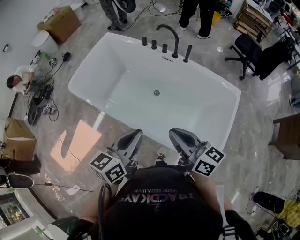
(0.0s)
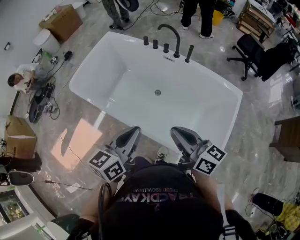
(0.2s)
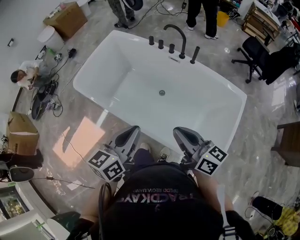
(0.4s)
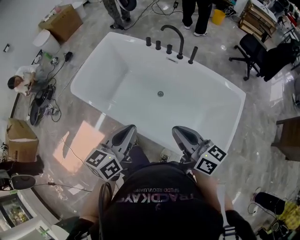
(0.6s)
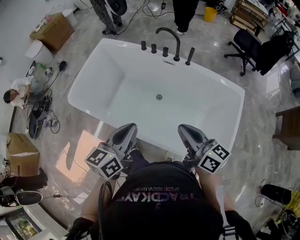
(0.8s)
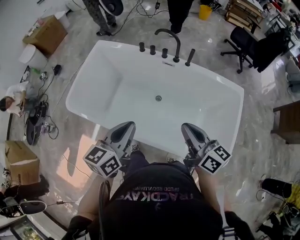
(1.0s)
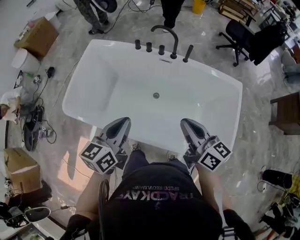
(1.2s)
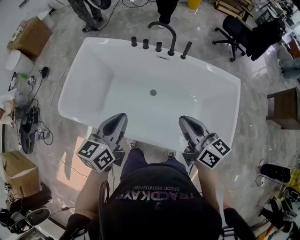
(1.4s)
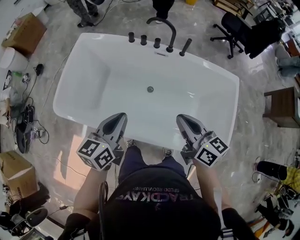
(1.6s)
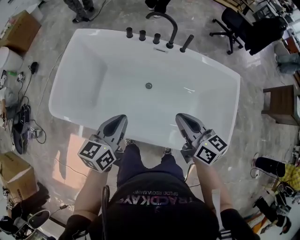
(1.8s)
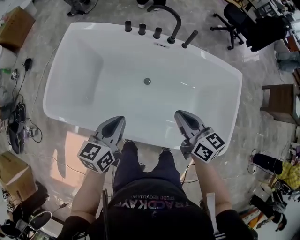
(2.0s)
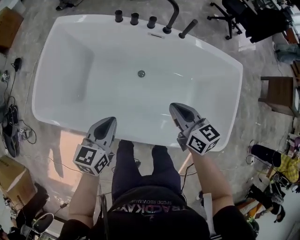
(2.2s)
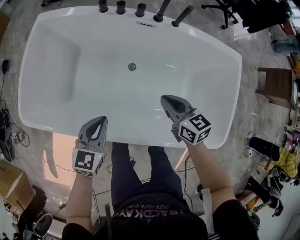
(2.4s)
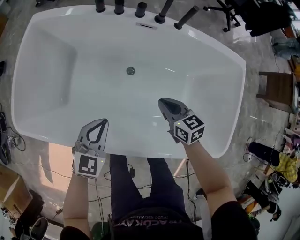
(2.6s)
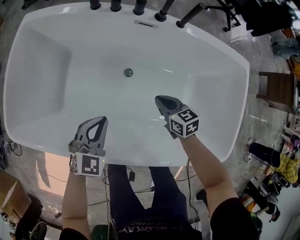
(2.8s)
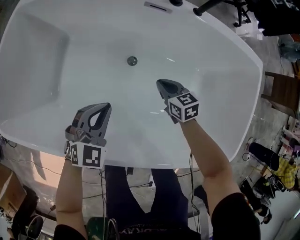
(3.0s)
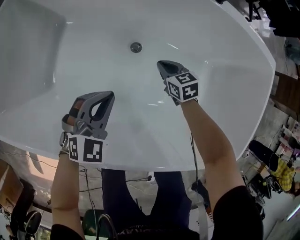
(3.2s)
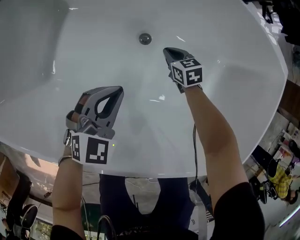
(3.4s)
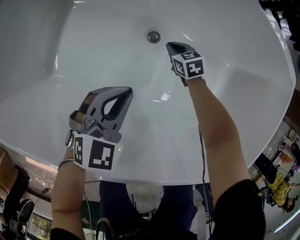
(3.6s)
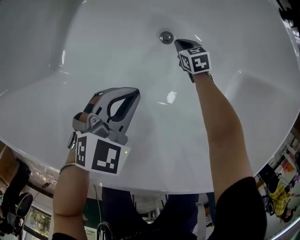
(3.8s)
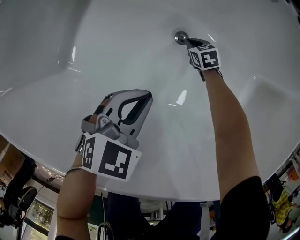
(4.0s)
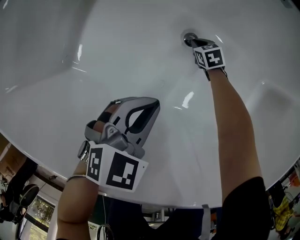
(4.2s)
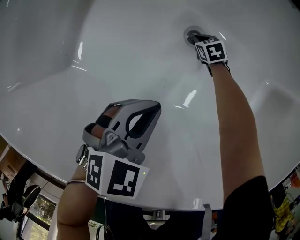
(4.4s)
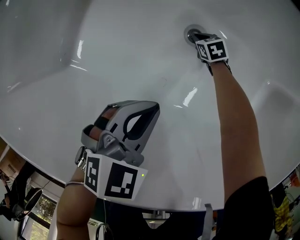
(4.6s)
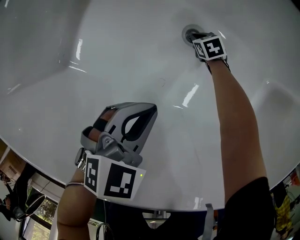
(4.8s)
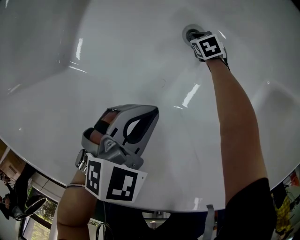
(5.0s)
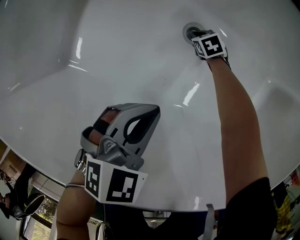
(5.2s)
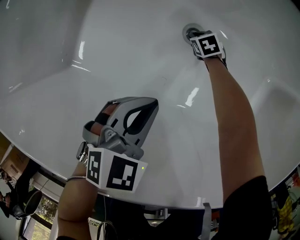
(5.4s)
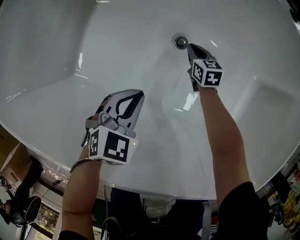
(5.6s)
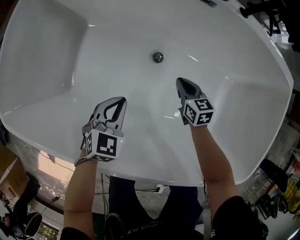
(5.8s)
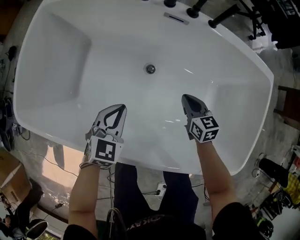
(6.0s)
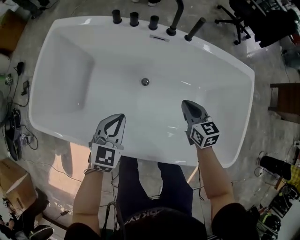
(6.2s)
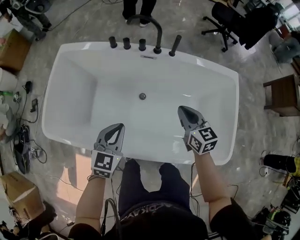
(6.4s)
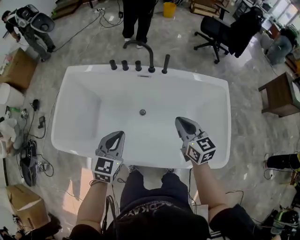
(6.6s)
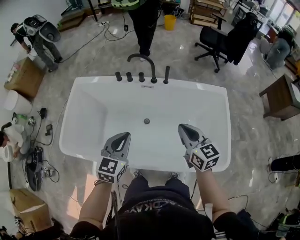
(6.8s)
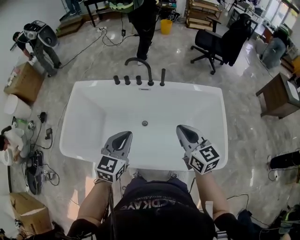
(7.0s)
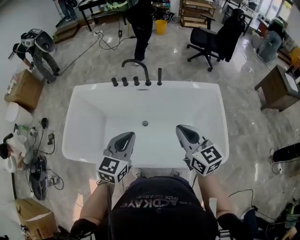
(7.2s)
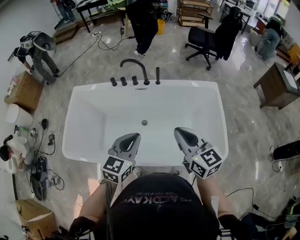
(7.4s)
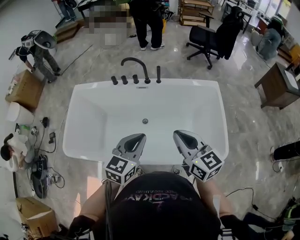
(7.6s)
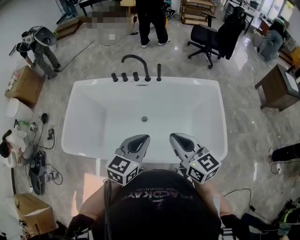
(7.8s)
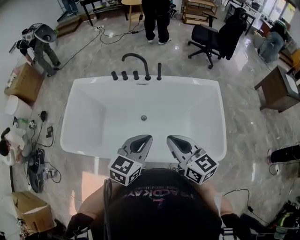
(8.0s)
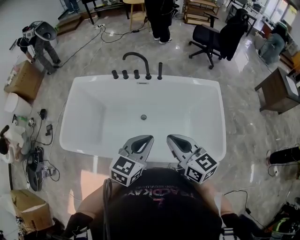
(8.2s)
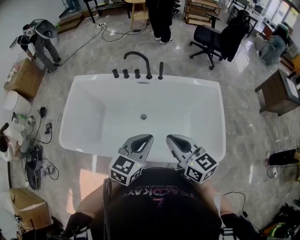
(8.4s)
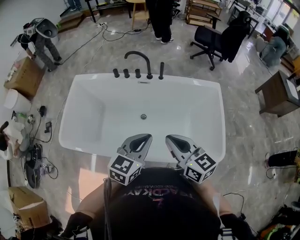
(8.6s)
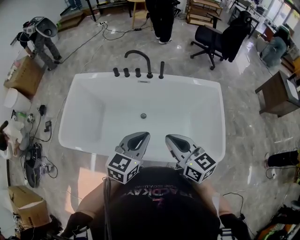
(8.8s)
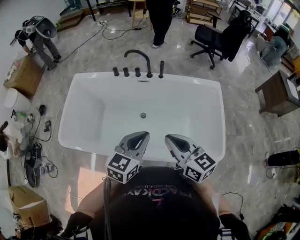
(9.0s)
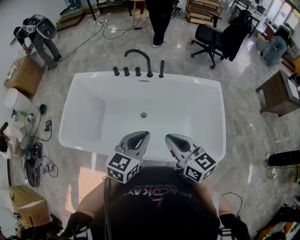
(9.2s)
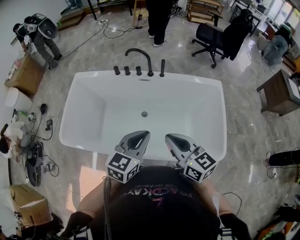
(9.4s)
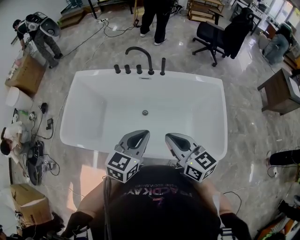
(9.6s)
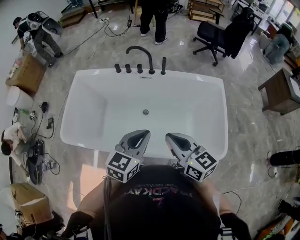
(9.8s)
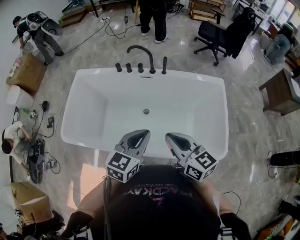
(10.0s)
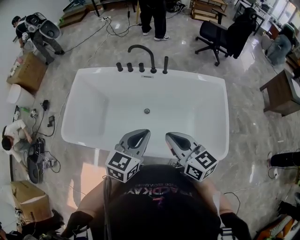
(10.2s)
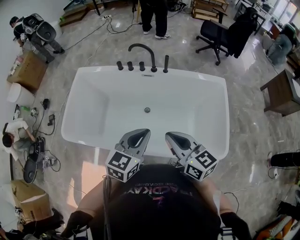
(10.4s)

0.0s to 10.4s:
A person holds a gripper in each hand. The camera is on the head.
0.0s to 1.4s: The left gripper heads forward and to the left, covering about 20 cm; the right gripper heads forward, covering roughly 10 cm, and turns by about 20 degrees.
1.4s to 3.0s: The two grippers go about 35 cm downward. The left gripper twists roughly 50 degrees clockwise, seen from behind, while the right gripper angles its fingers downward, by some 40 degrees.
3.0s to 4.4s: The right gripper moves downward and forward, roughly 35 cm, and rotates some 30 degrees. Meanwhile the left gripper goes some 10 cm downward, and turns by about 20 degrees.
4.4s to 6.0s: The right gripper moves upward and backward, approximately 35 cm, and rotates about 30 degrees; the left gripper moves upward, approximately 10 cm.
6.0s to 7.4s: The right gripper shifts about 40 cm upward, and changes its angle by about 30 degrees, while the left gripper is displaced upward and to the right by about 35 cm, and changes its angle by about 20 degrees.
7.4s to 9.0s: The right gripper shifts by roughly 5 cm.
9.0s to 10.4s: Both grippers stay put.

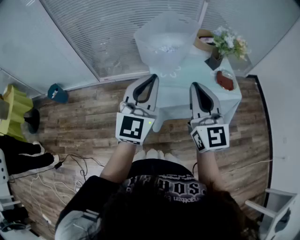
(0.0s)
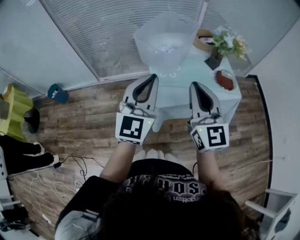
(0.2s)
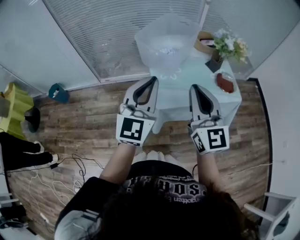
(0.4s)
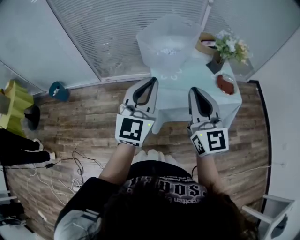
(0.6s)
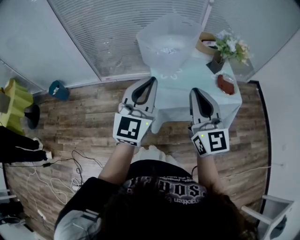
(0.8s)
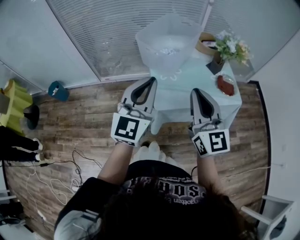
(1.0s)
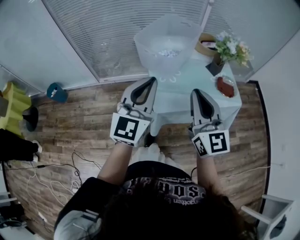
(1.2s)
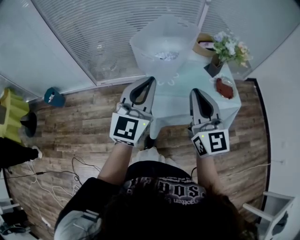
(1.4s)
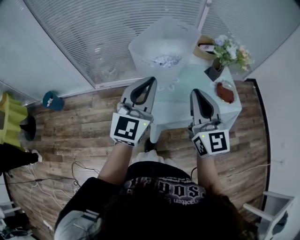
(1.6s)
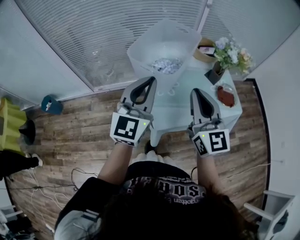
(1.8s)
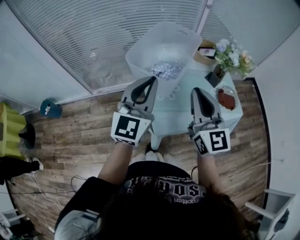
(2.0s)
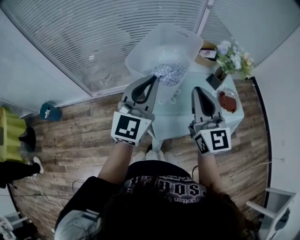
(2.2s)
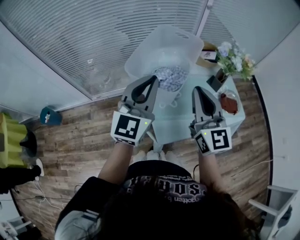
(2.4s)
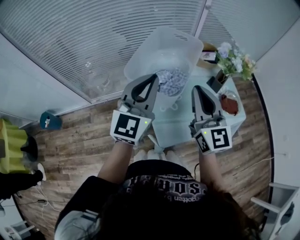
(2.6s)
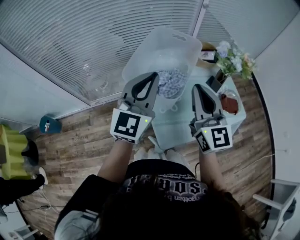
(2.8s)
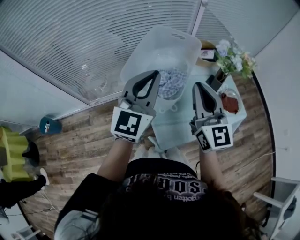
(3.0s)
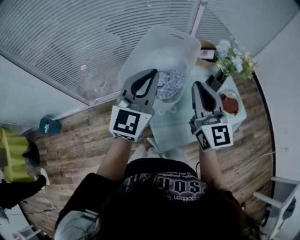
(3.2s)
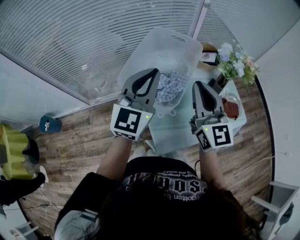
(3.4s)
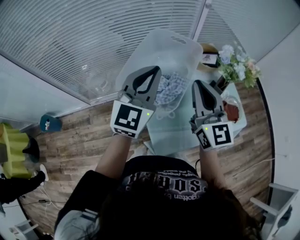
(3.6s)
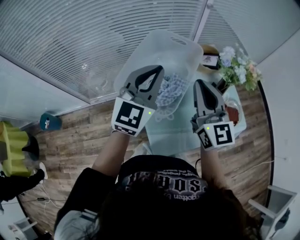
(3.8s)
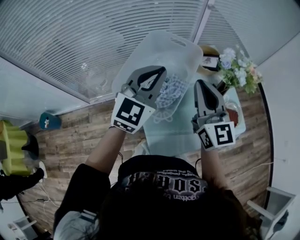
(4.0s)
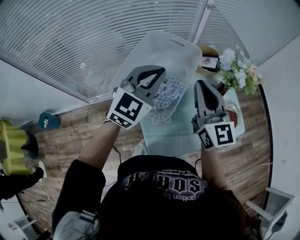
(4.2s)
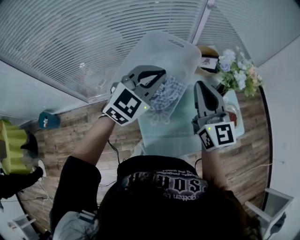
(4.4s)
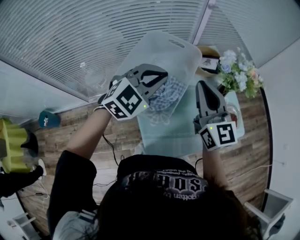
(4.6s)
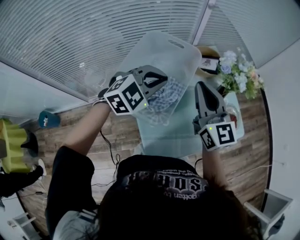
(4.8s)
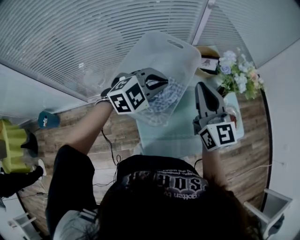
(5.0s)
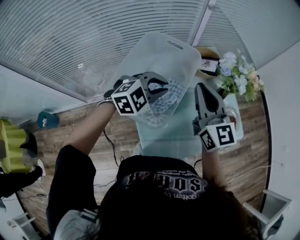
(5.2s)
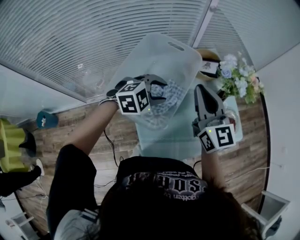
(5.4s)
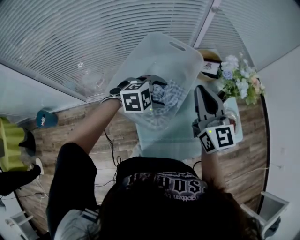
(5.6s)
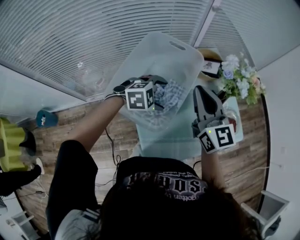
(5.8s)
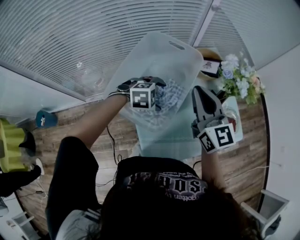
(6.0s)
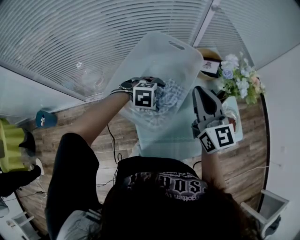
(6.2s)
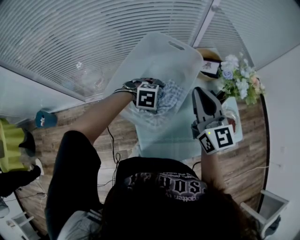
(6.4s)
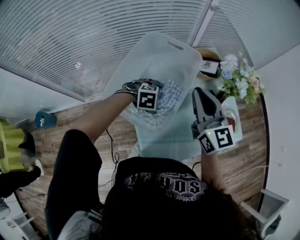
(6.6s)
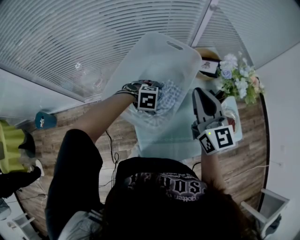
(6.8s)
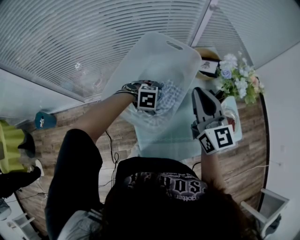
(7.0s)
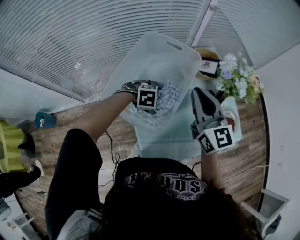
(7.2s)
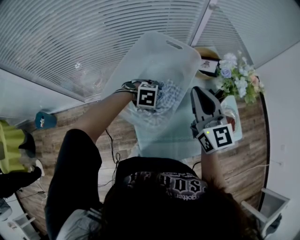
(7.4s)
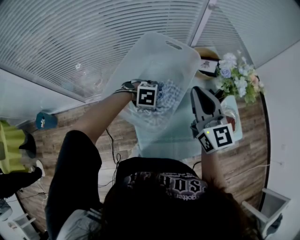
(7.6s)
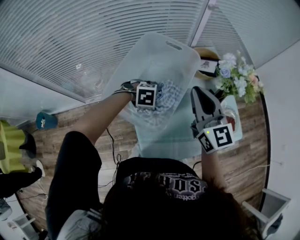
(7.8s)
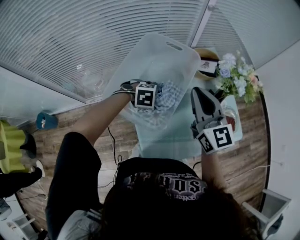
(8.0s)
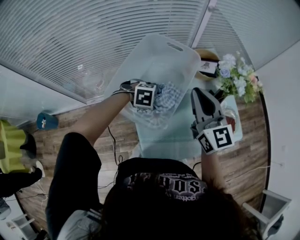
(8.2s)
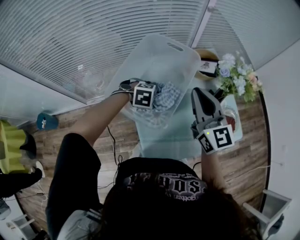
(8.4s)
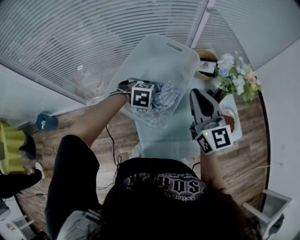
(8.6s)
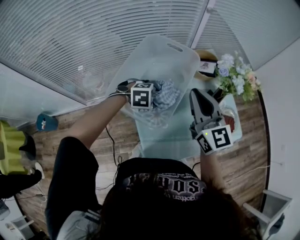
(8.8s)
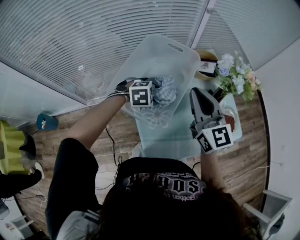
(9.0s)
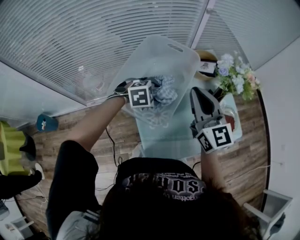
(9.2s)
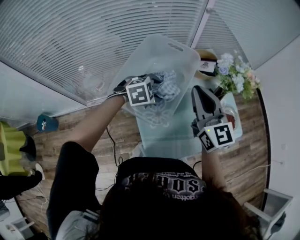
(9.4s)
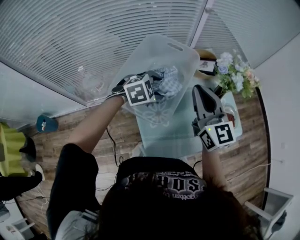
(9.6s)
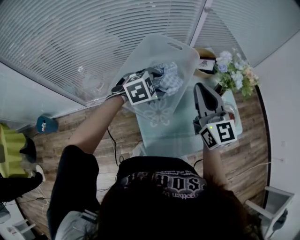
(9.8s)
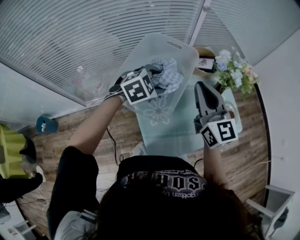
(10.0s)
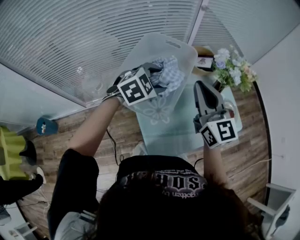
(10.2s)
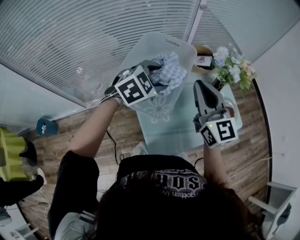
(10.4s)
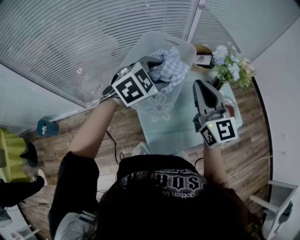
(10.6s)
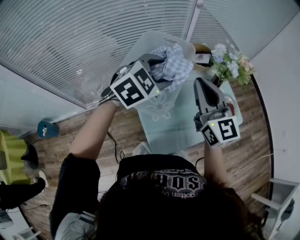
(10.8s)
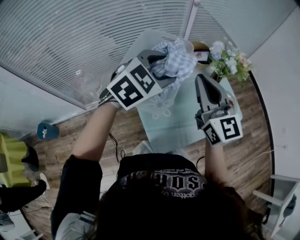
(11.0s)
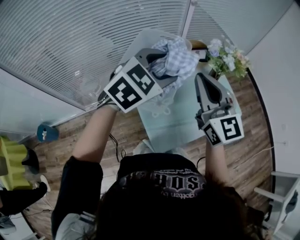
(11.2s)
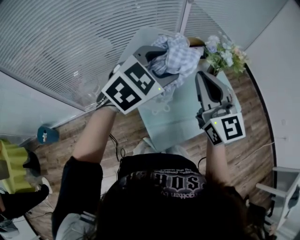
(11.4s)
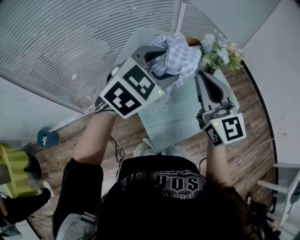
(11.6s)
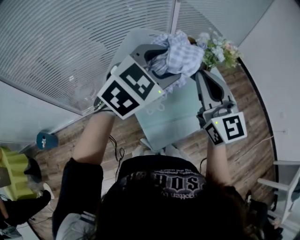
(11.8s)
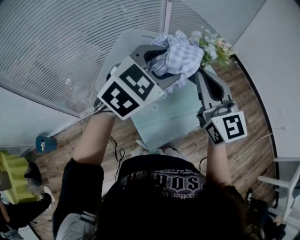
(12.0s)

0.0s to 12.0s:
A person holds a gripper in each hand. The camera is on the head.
0.0s to 1.6s: Both grippers travel together forward, some 10 cm.
1.6s to 3.0s: Both grippers travel together forward, roughly 15 cm.
3.0s to 4.4s: The right gripper heads forward, covering about 10 cm, while the left gripper is displaced forward and to the right by some 10 cm, and rotates approximately 30 degrees.
4.4s to 6.0s: The left gripper is displaced downward by some 25 cm, angles its fingers downward, by some 40 degrees, and opens up.
7.6s to 9.0s: The left gripper goes some 5 cm upward.
9.0s to 10.4s: The left gripper goes roughly 15 cm upward, and changes its angle by roughly 30 degrees.
10.4s to 12.0s: The left gripper travels upward, to the right and backward by approximately 20 cm; the right gripper shifts about 10 cm to the right, upward and backward.

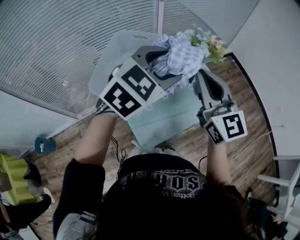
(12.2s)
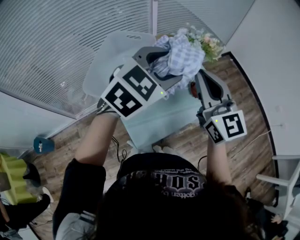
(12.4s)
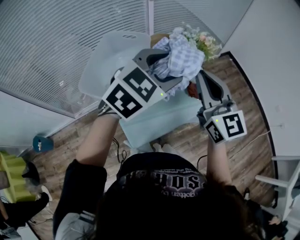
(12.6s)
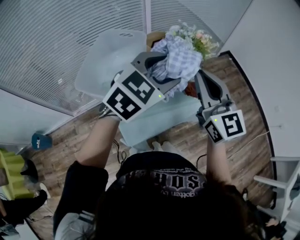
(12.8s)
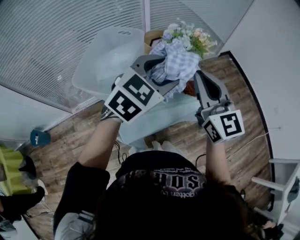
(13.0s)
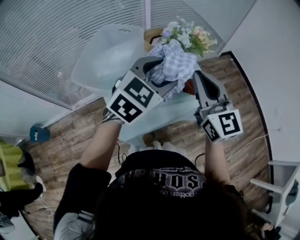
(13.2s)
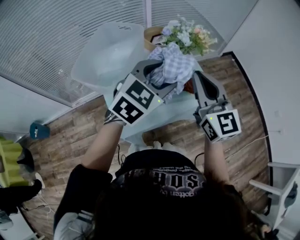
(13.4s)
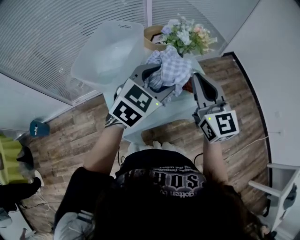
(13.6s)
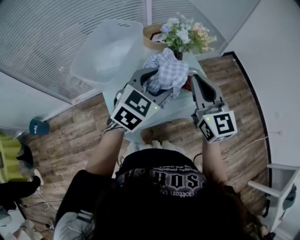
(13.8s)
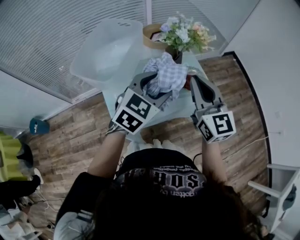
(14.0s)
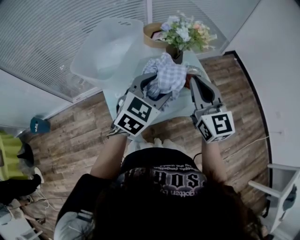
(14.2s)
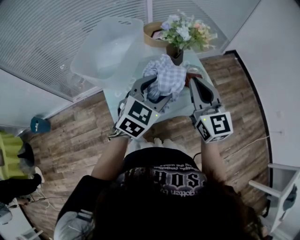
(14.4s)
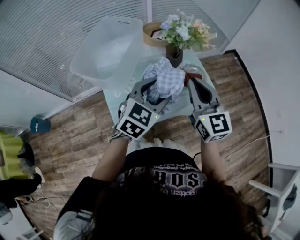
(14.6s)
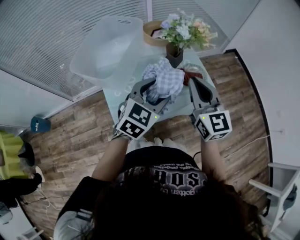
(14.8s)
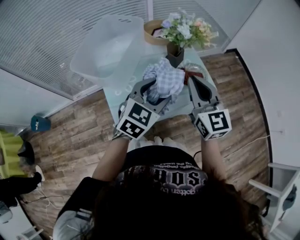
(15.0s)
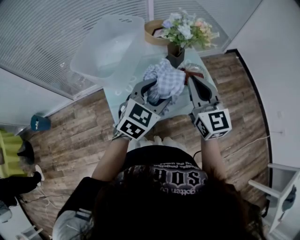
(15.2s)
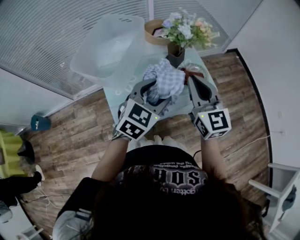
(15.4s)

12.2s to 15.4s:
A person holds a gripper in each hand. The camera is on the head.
12.2s to 13.8s: Both grippers move to the right and downward, roughly 15 cm.
13.8s to 15.4s: The left gripper heads downward, covering some 5 cm.
